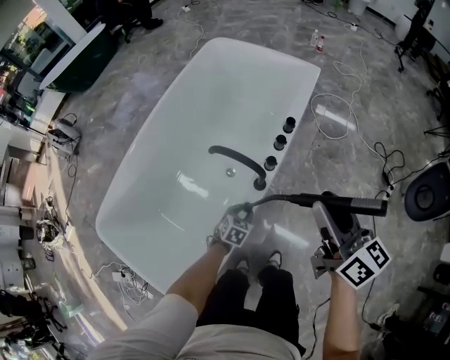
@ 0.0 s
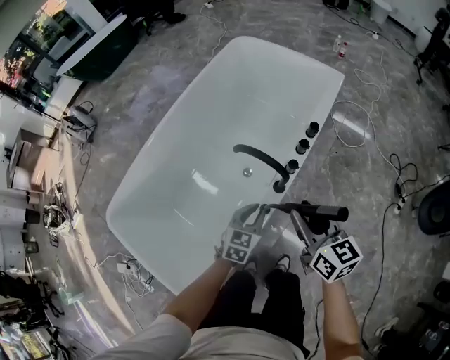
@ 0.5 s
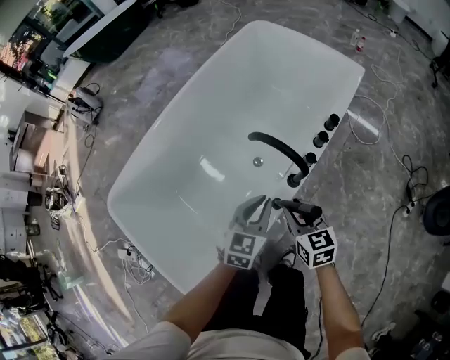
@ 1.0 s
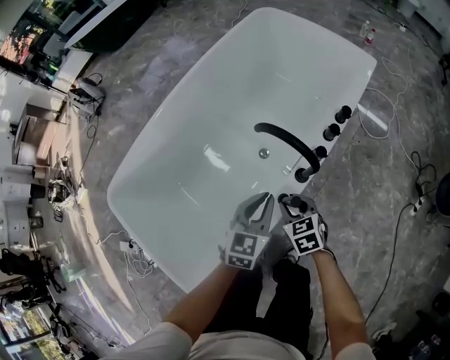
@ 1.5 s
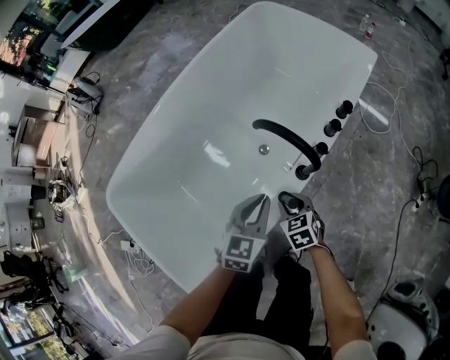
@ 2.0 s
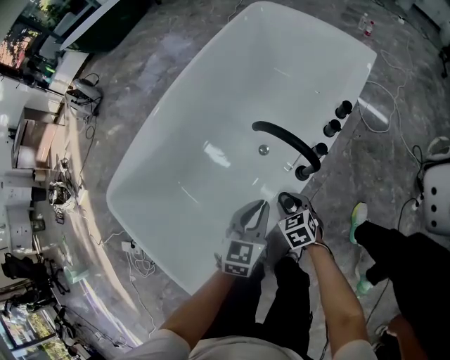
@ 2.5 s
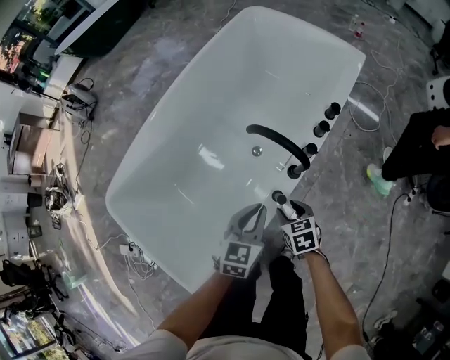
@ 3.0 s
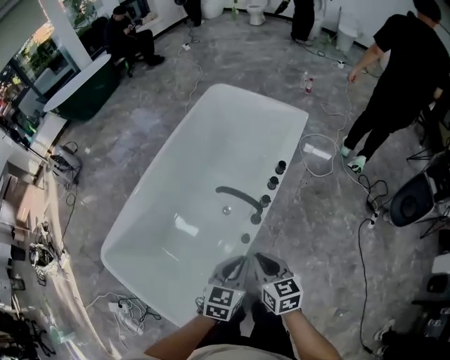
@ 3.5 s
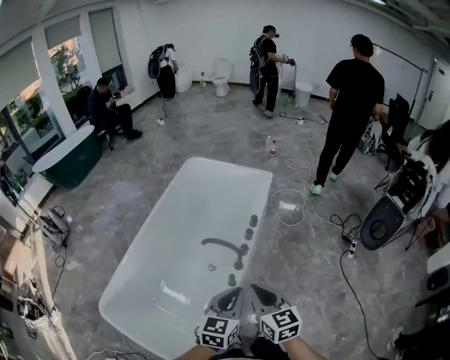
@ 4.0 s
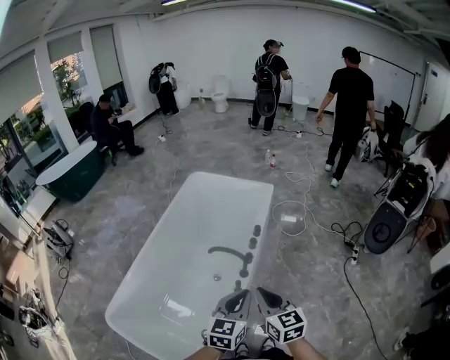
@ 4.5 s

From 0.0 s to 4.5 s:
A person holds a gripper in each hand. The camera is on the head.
From 0.0 s to 2.0 s: The left gripper moves upward and to the left, about 15 cm, and turns by approximately 30 degrees; the right gripper heads downward and to the left, covering roughly 40 cm, and angles its fingers downward, by roughly 50 degrees.
From 2.0 s to 4.5 s: Both grippers travel together upward, about 35 cm. The left gripper rotates some 20 degrees, while the right gripper tilts its fingers about 30 degrees upward, and closes up.

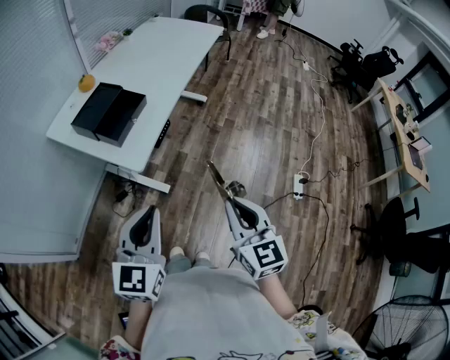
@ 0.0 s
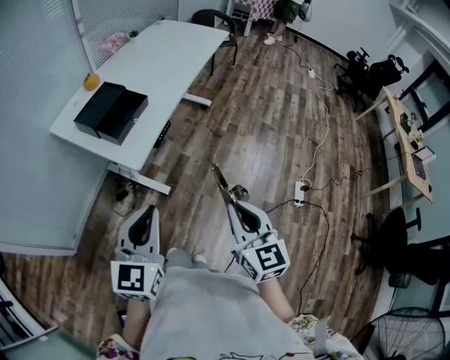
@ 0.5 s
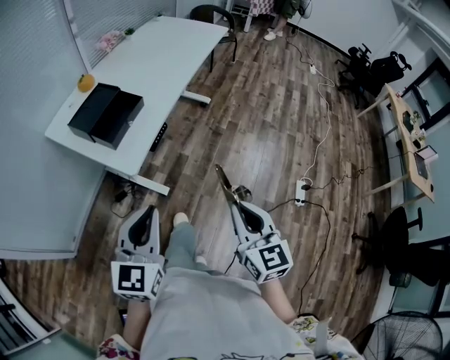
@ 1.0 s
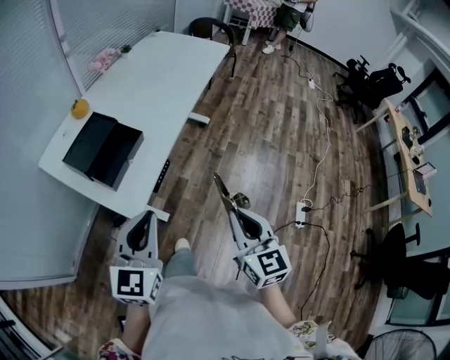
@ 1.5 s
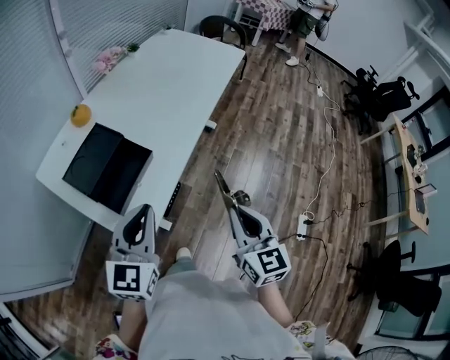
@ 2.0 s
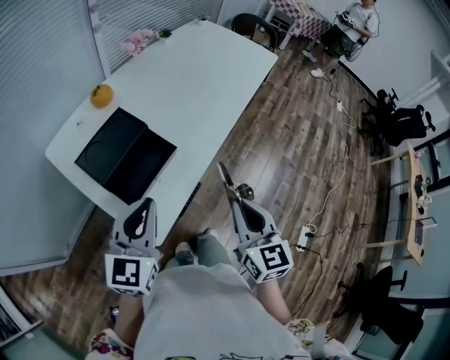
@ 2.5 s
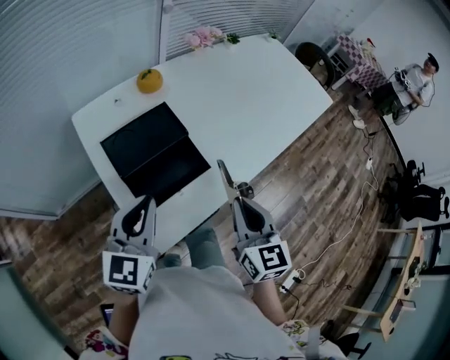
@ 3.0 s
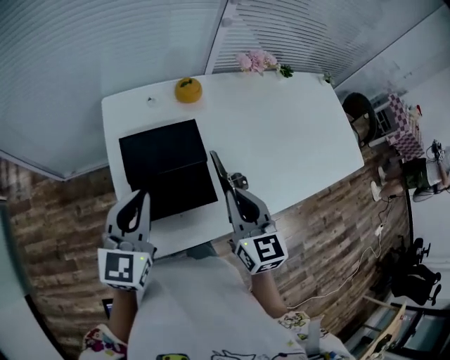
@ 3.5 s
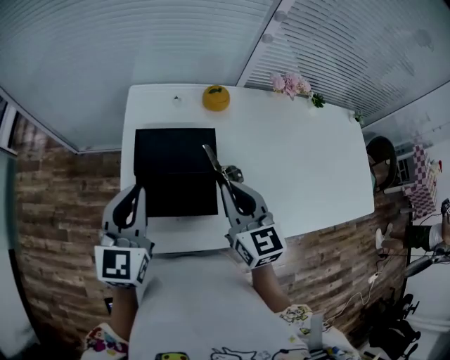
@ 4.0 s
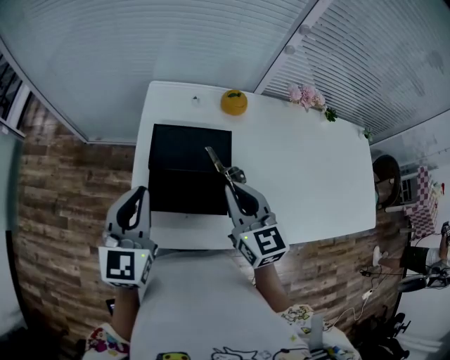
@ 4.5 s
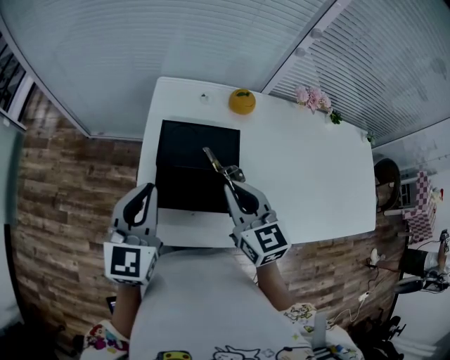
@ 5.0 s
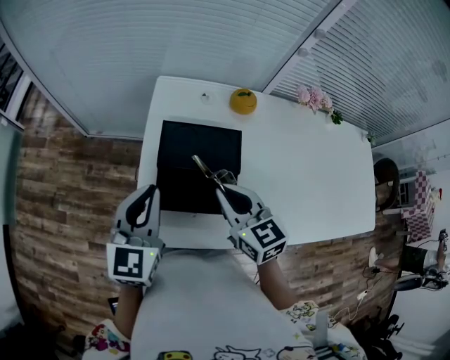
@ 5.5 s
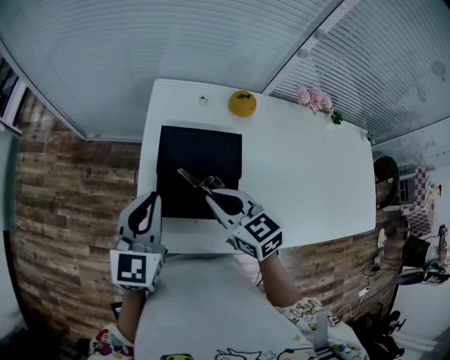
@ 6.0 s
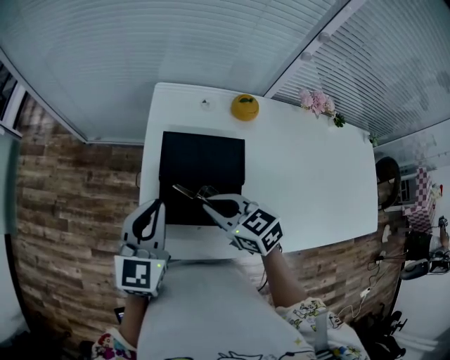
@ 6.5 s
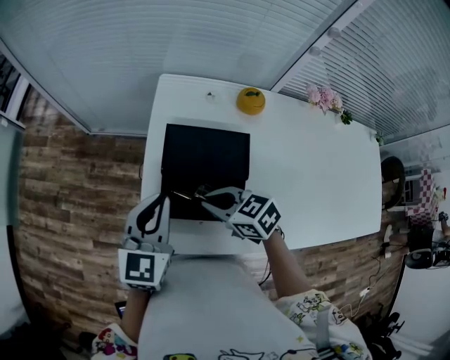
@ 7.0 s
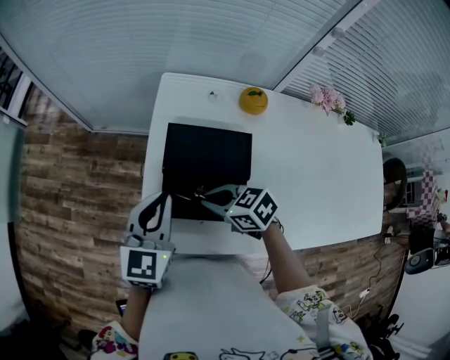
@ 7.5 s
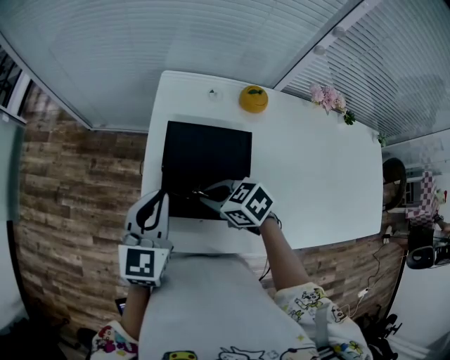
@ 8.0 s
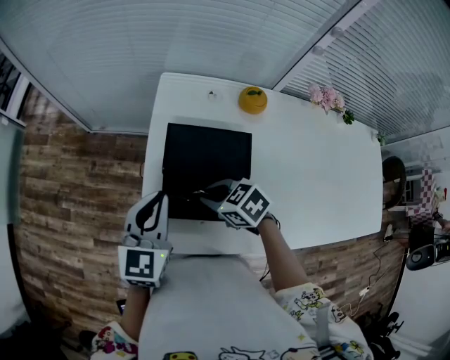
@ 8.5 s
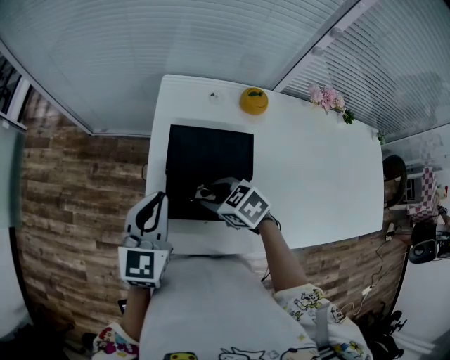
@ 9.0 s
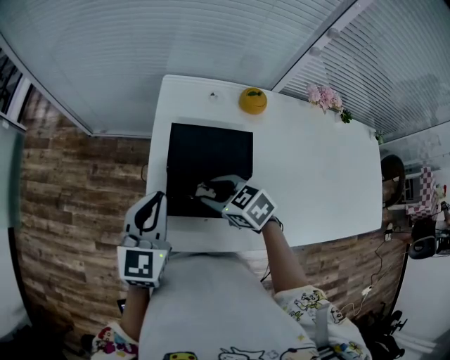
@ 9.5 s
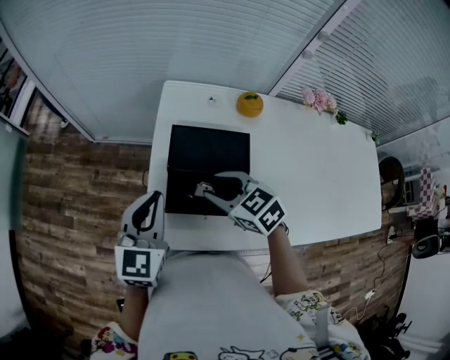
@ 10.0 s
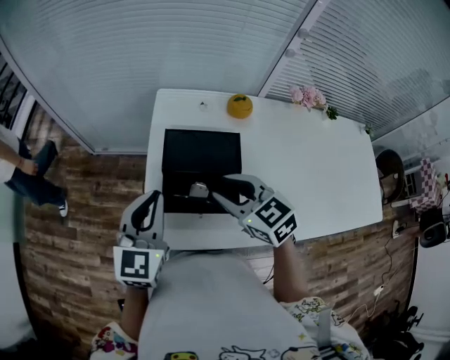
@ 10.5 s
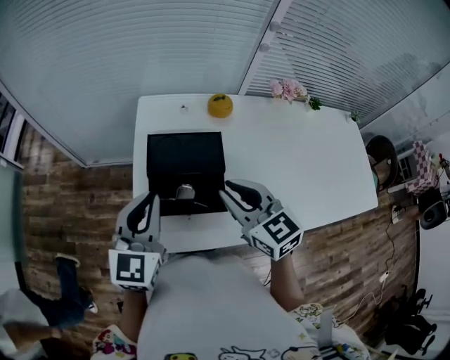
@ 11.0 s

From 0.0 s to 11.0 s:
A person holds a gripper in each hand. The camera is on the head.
From 0.0 s to 2.0 s: The grippers both shift forward by roughly 25 cm.
From 2.0 s to 3.5 s: The right gripper ends up approximately 35 cm from where it was, and changes its angle by about 50 degrees; the left gripper shifts by some 15 cm, and swivels about 50 degrees.
From 3.5 s to 5.5 s: The right gripper ends up approximately 10 cm from where it was, and swivels approximately 30 degrees.
From 5.5 s to 7.5 s: The right gripper moves downward and to the left, roughly 10 cm, and rotates some 40 degrees.
From 7.5 s to 9.0 s: The right gripper opens its fingers.
From 9.0 s to 11.0 s: The left gripper goes some 5 cm upward. The right gripper travels upward and to the right by roughly 20 cm, and angles its fingers upward, by approximately 30 degrees.

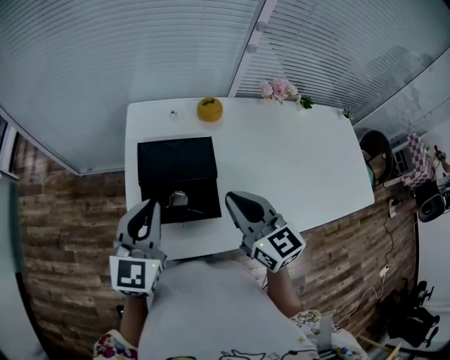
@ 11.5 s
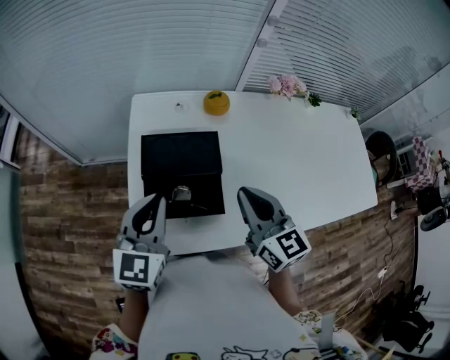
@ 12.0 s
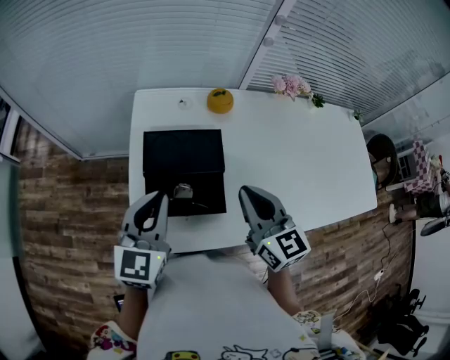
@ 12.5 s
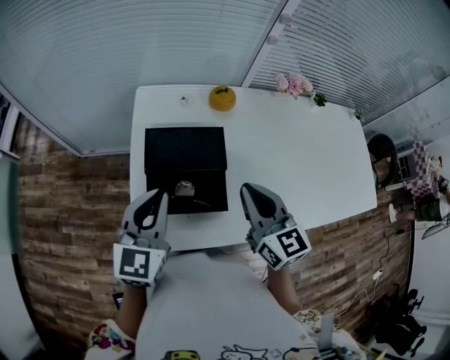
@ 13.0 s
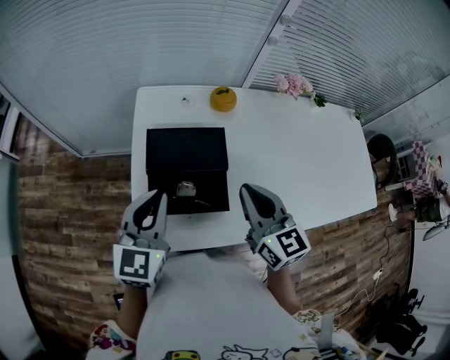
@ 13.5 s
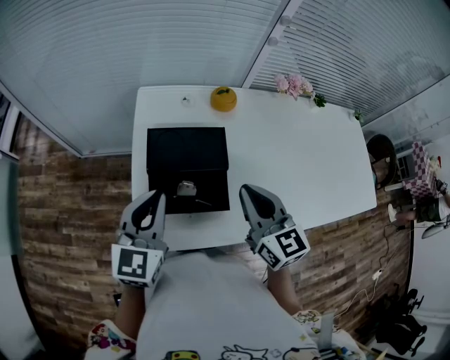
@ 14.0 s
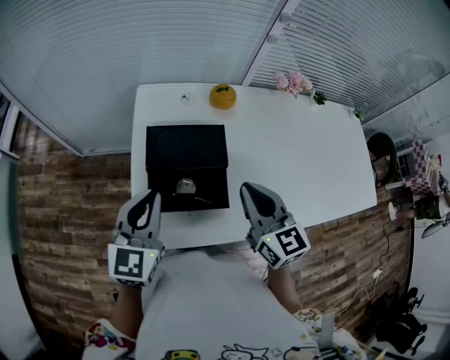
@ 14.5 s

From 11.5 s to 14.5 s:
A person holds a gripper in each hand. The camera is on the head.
From 11.5 s to 14.5 s: There are only small adjustments of the grippers.

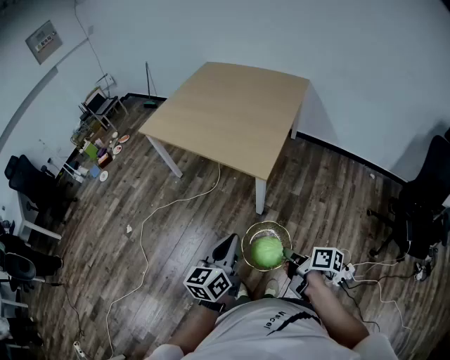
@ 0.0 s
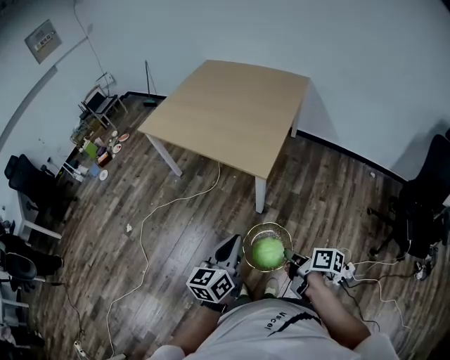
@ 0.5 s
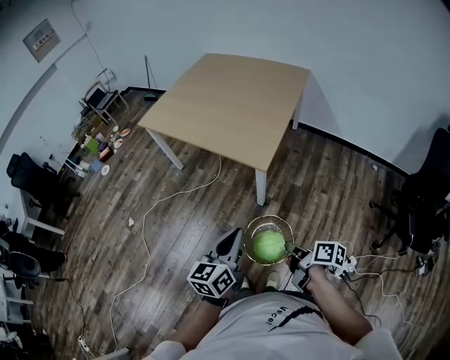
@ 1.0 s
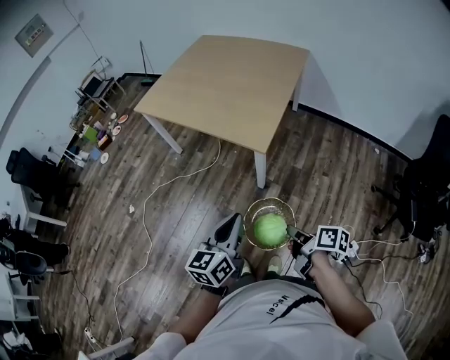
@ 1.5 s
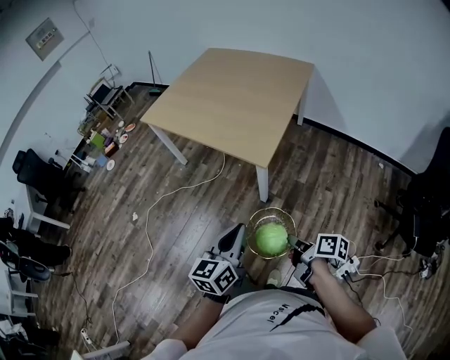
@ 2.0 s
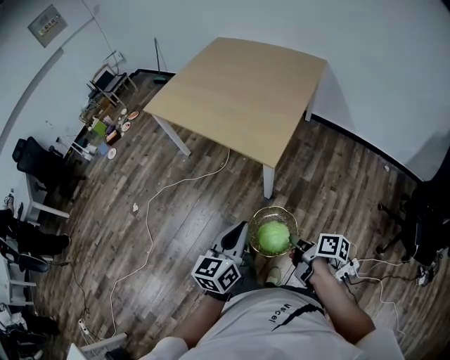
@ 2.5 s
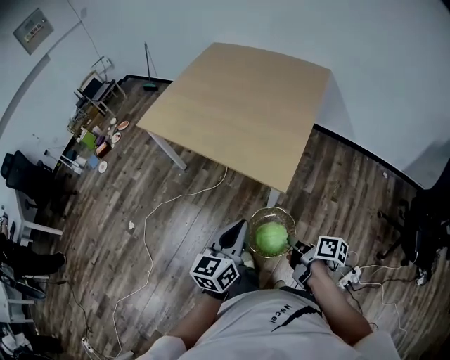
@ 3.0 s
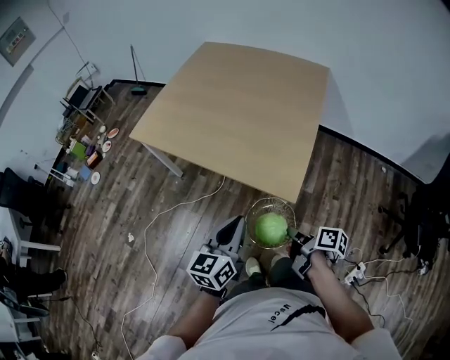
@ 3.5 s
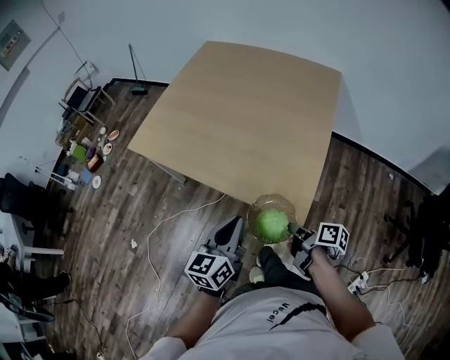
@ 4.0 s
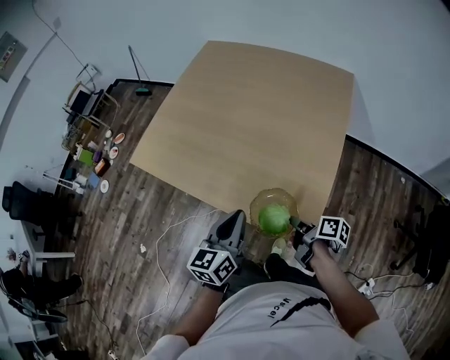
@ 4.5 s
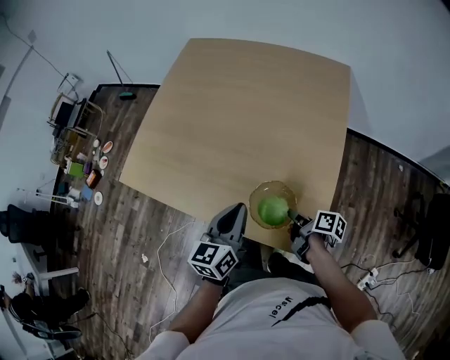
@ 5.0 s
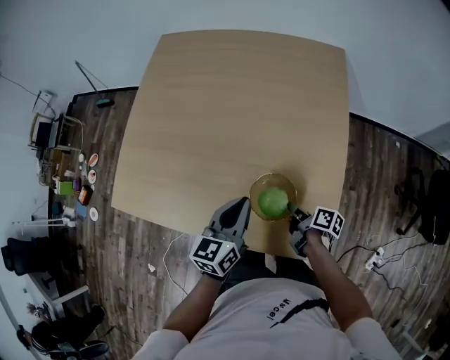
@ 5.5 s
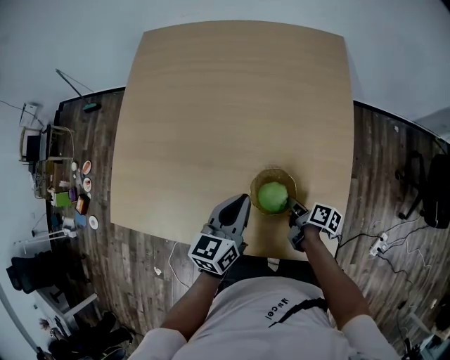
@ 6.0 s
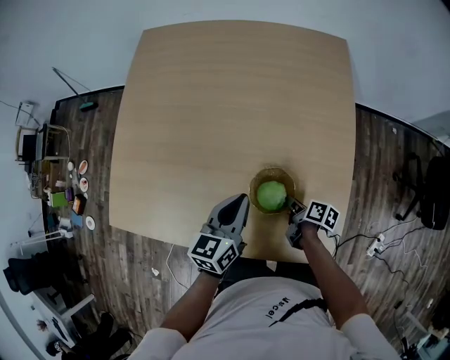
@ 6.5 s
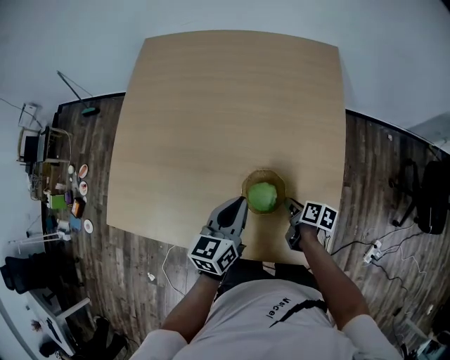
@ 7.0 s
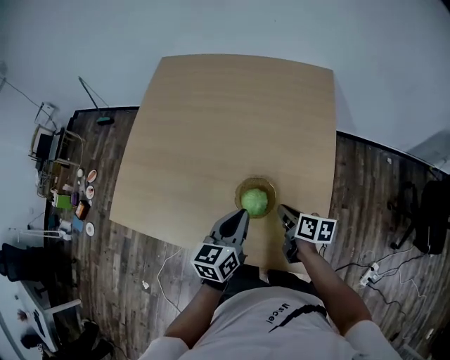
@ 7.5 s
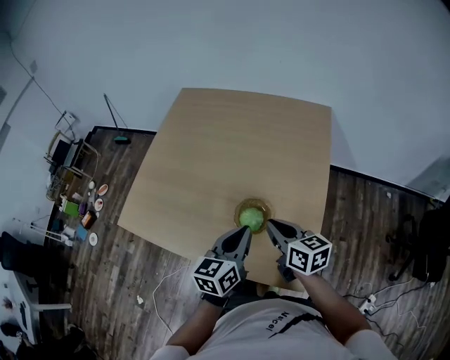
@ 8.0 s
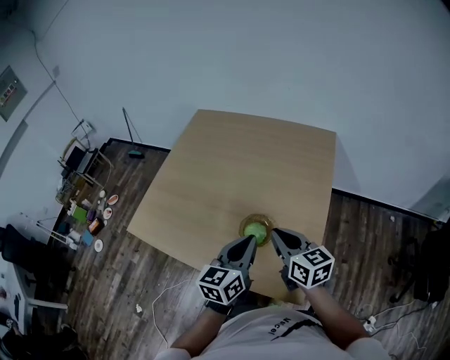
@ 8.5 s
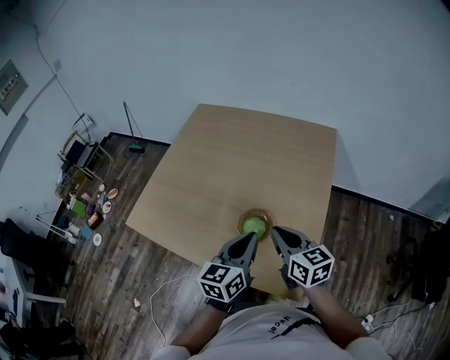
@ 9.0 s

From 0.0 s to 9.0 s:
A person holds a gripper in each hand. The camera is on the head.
From 2.0 s to 4.5 s: The left gripper moves approximately 50 cm.
From 4.5 s to 7.0 s: The left gripper changes place by about 25 cm, and rotates roughly 20 degrees.
From 7.0 s to 9.0 s: The left gripper travels upward by about 15 cm.
